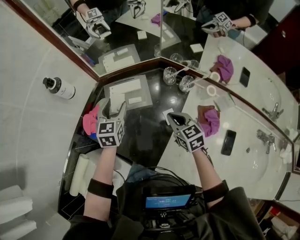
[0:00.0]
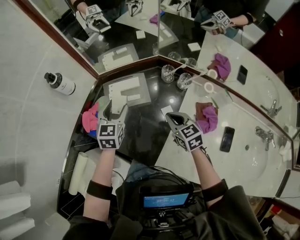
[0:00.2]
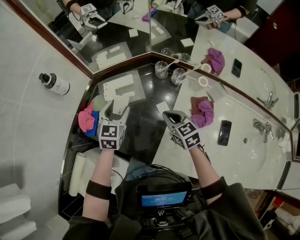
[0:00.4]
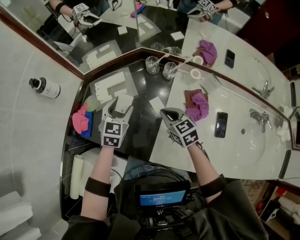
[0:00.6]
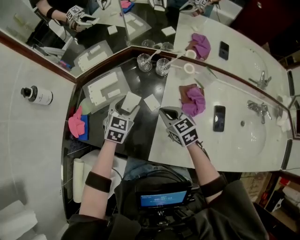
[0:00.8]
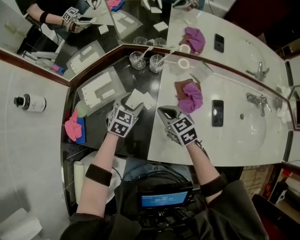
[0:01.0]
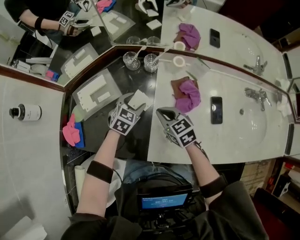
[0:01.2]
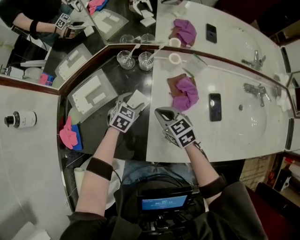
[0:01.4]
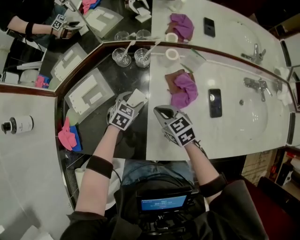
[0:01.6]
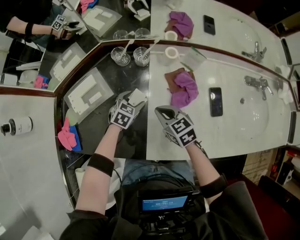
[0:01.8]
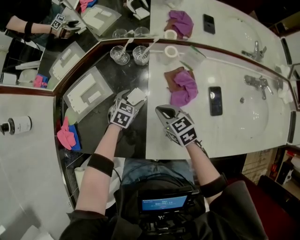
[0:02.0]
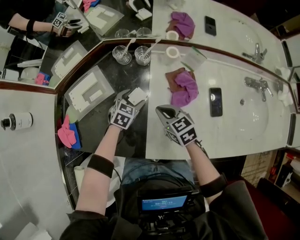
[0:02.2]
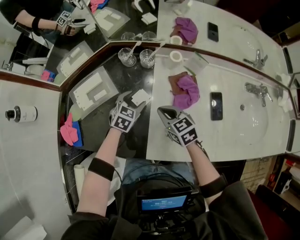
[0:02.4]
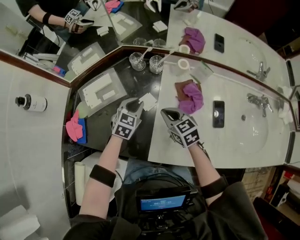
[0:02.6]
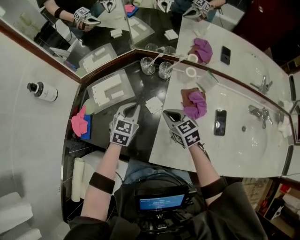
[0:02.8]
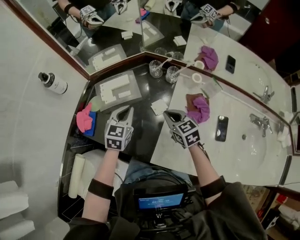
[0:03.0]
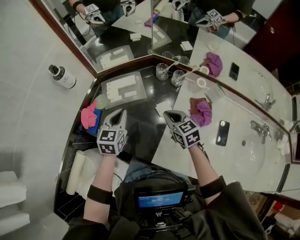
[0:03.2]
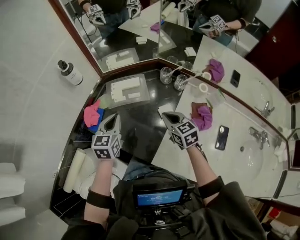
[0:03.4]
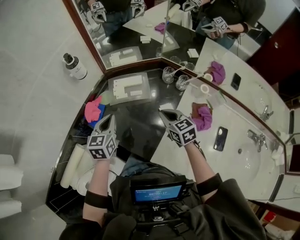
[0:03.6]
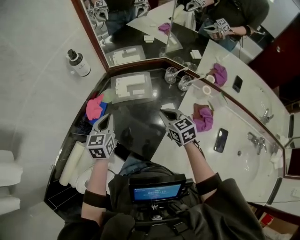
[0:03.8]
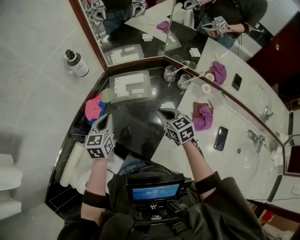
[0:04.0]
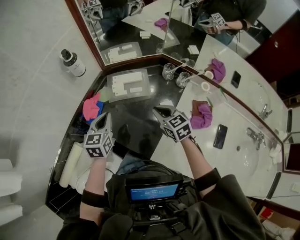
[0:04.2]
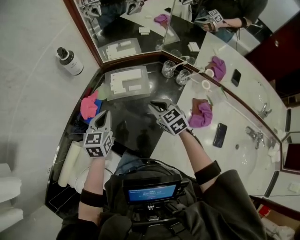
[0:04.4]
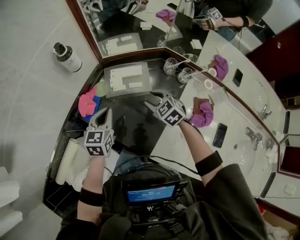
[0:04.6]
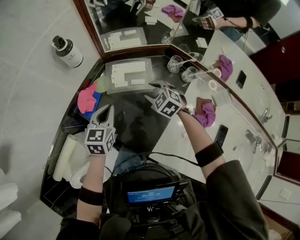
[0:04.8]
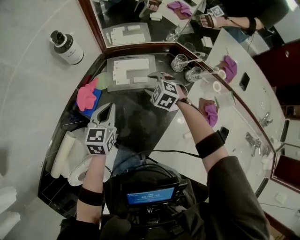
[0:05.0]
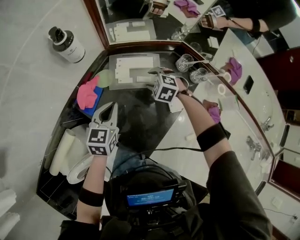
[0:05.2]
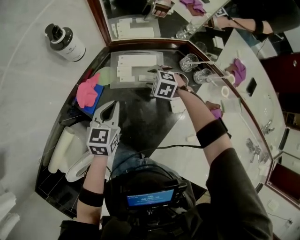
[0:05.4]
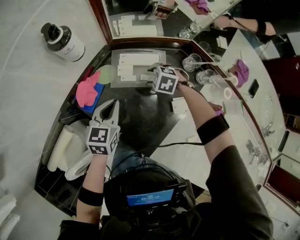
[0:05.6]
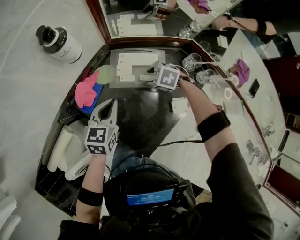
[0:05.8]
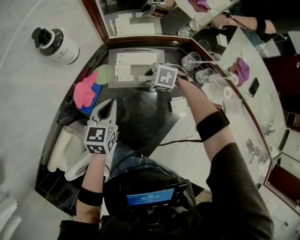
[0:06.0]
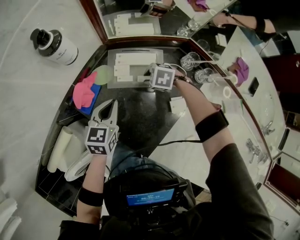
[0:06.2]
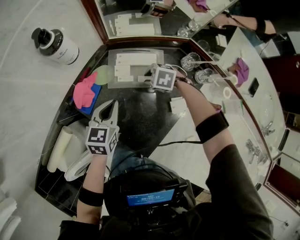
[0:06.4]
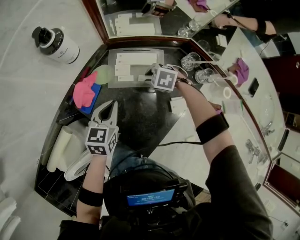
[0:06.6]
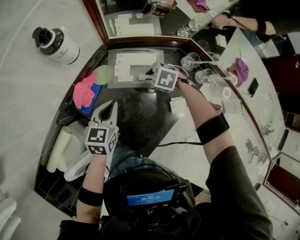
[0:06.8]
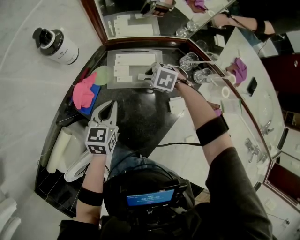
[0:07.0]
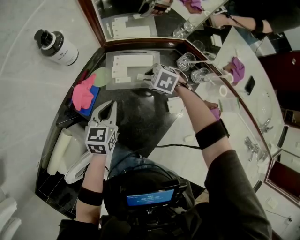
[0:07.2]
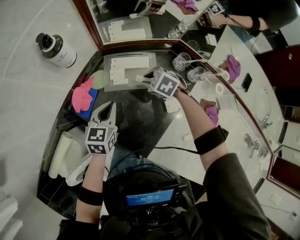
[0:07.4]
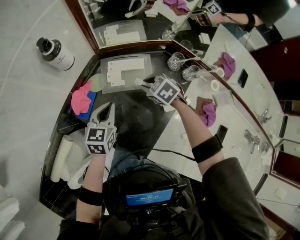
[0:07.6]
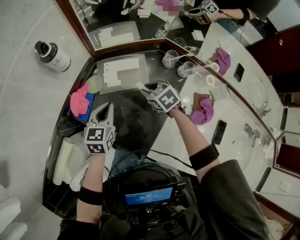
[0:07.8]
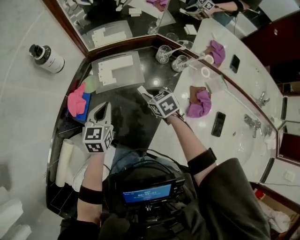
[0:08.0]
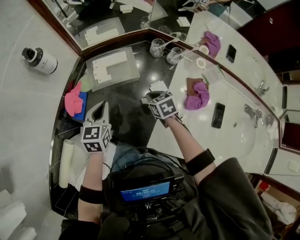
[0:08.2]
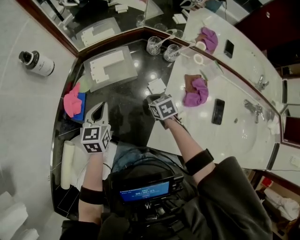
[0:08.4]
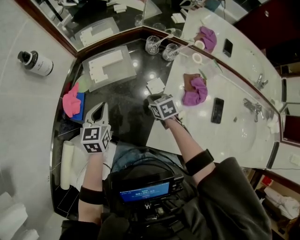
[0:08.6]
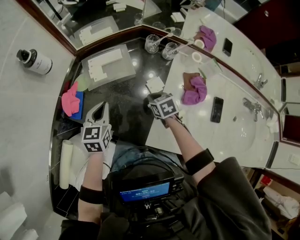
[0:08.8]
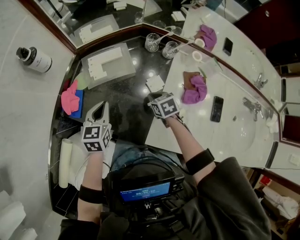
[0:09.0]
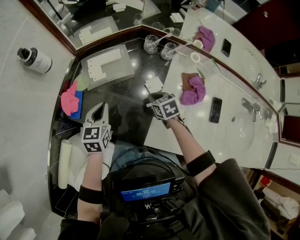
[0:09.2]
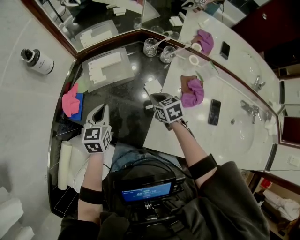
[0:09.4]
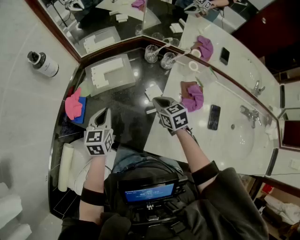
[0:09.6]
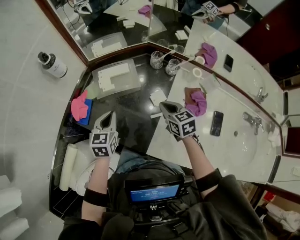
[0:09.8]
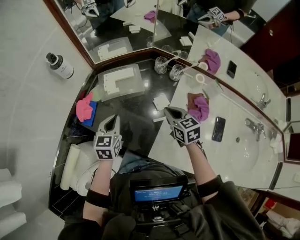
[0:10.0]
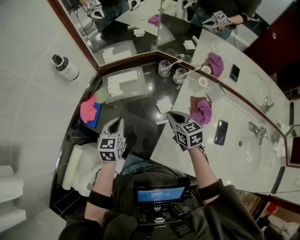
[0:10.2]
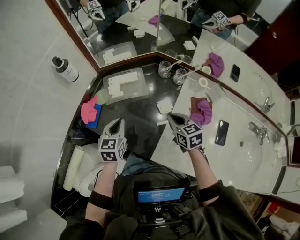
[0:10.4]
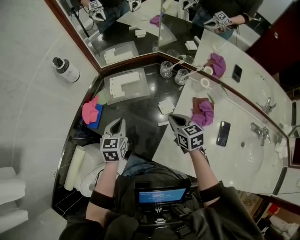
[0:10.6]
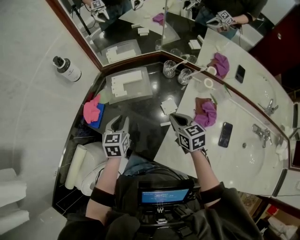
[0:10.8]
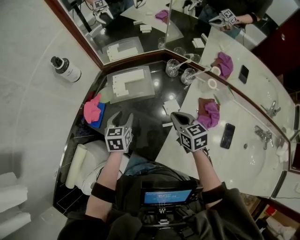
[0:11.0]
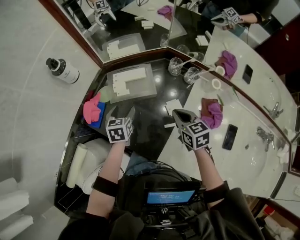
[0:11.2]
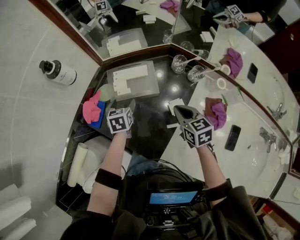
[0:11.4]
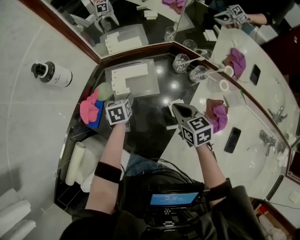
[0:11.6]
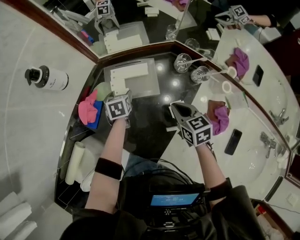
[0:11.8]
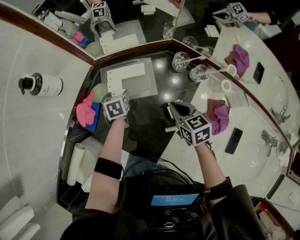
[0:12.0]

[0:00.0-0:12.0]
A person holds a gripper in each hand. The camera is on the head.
0:00.0 to 0:01.6: The left gripper ends up approximately 30 cm from where it was, and rotates roughly 60 degrees. Meanwhile the right gripper ends up approximately 10 cm from where it was.
0:01.6 to 0:03.0: The left gripper travels upward and to the left by roughly 20 cm, changes its angle by some 40 degrees, and closes its fingers. Meanwhile the right gripper travels upward by roughly 5 cm.
0:03.0 to 0:04.4: The left gripper heads to the left, covering some 15 cm, and turns by roughly 20 degrees, while the right gripper heads to the left and forward, covering about 15 cm, and rotates about 20 degrees.
0:04.4 to 0:06.0: The left gripper heads downward, covering approximately 10 cm. The right gripper shifts approximately 15 cm downward, and turns by about 60 degrees.
0:06.0 to 0:07.6: The right gripper travels upward by approximately 10 cm, and swivels approximately 30 degrees.
0:07.6 to 0:09.0: The right gripper heads backward, to the right and downward, covering about 20 cm, and rotates around the line of its fingers by approximately 40 degrees, clockwise from behind. Meanwhile the left gripper shifts roughly 5 cm backward.
0:09.0 to 0:10.4: The right gripper shifts about 15 cm upward, and rotates about 20 degrees.
0:10.4 to 0:12.0: The left gripper heads forward and downward, covering about 25 cm, swivels about 40 degrees, and opens up. The right gripper heads forward and downward, covering roughly 15 cm.

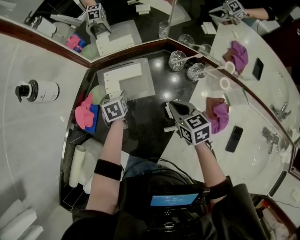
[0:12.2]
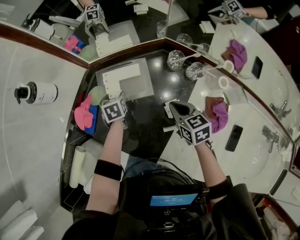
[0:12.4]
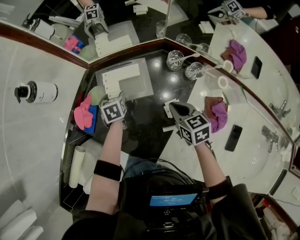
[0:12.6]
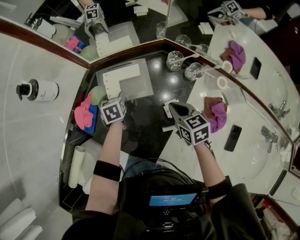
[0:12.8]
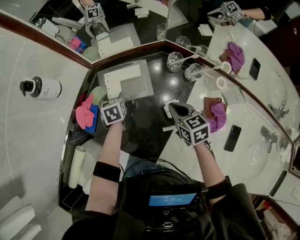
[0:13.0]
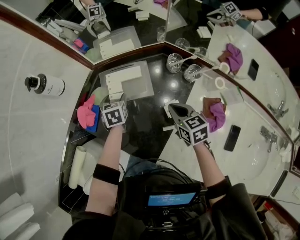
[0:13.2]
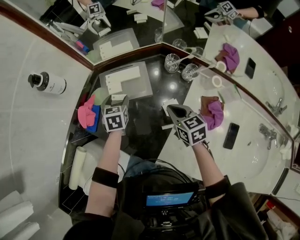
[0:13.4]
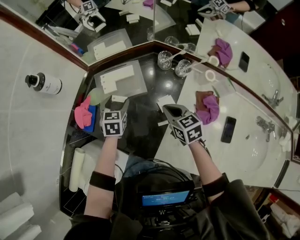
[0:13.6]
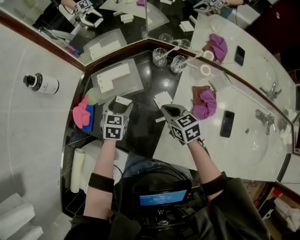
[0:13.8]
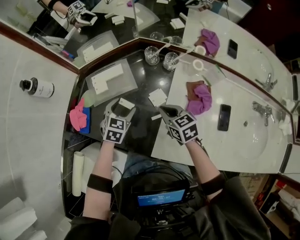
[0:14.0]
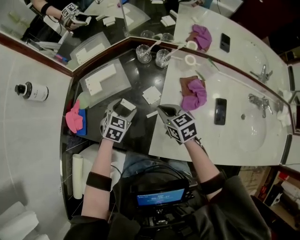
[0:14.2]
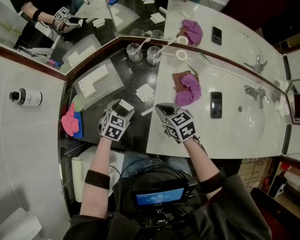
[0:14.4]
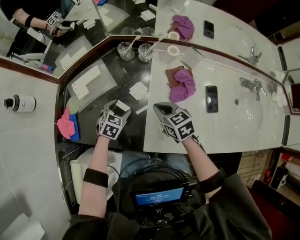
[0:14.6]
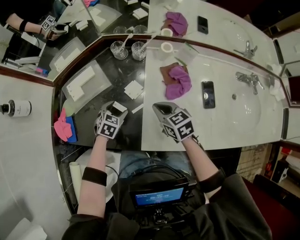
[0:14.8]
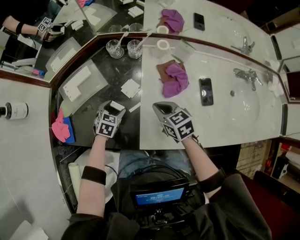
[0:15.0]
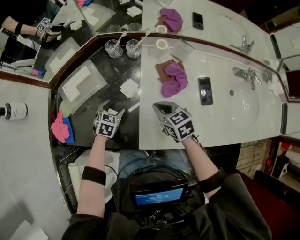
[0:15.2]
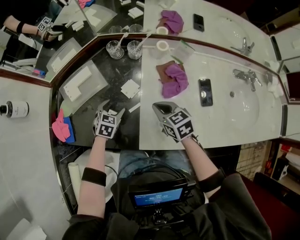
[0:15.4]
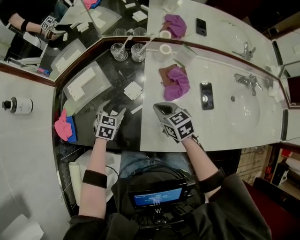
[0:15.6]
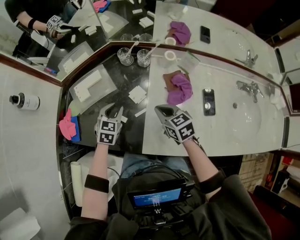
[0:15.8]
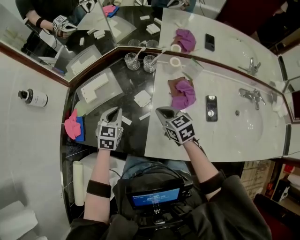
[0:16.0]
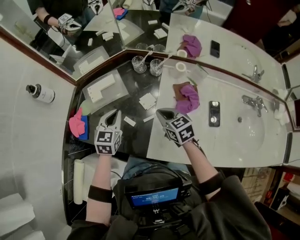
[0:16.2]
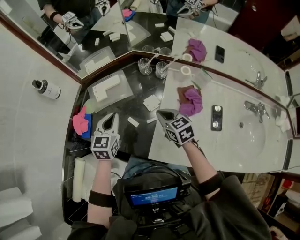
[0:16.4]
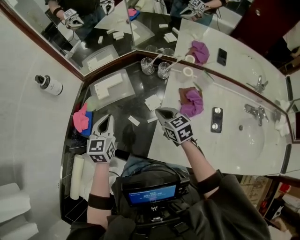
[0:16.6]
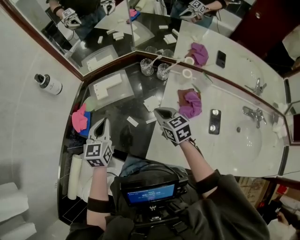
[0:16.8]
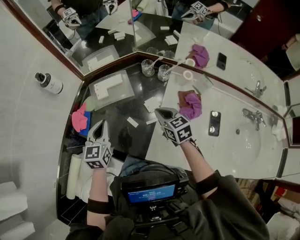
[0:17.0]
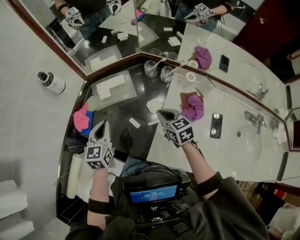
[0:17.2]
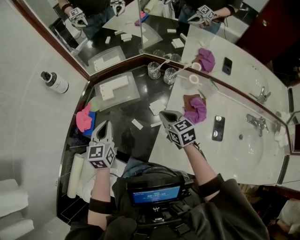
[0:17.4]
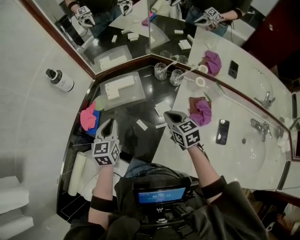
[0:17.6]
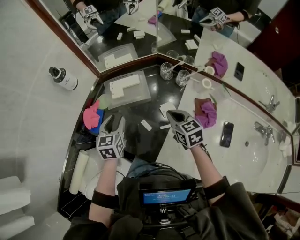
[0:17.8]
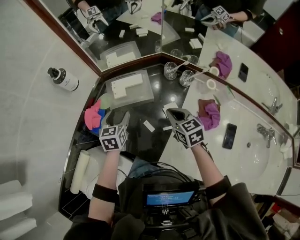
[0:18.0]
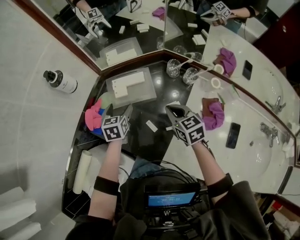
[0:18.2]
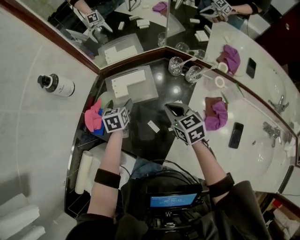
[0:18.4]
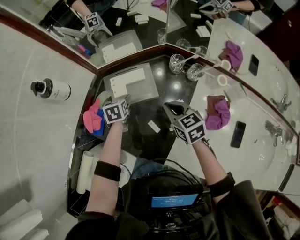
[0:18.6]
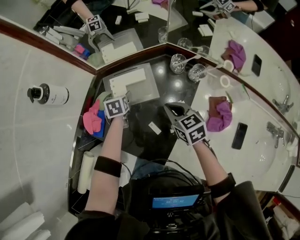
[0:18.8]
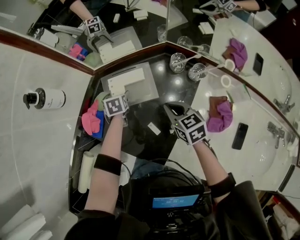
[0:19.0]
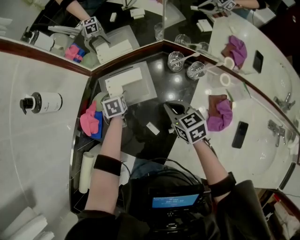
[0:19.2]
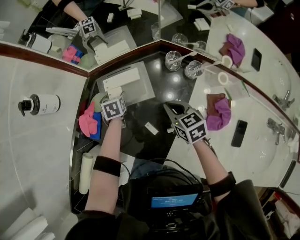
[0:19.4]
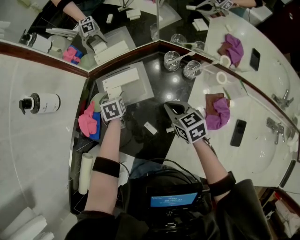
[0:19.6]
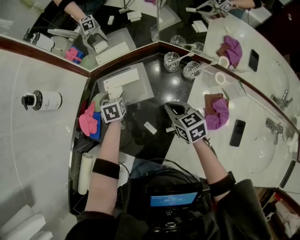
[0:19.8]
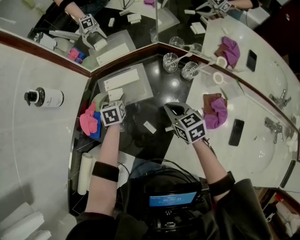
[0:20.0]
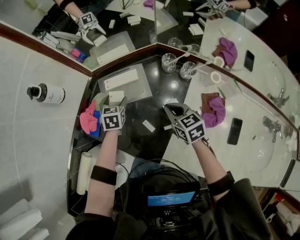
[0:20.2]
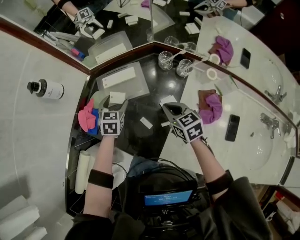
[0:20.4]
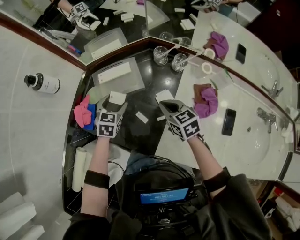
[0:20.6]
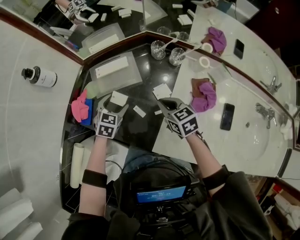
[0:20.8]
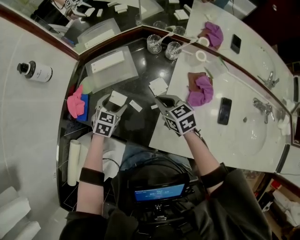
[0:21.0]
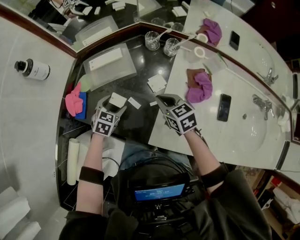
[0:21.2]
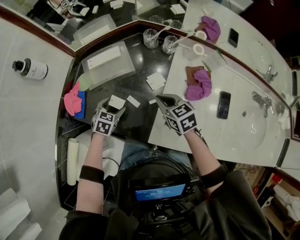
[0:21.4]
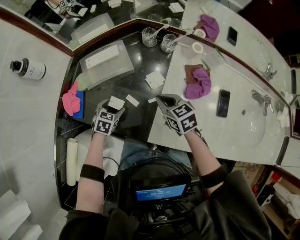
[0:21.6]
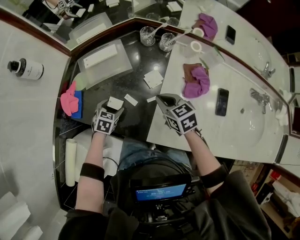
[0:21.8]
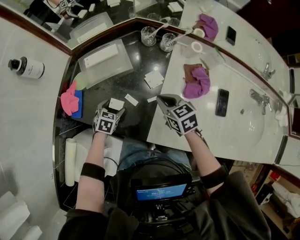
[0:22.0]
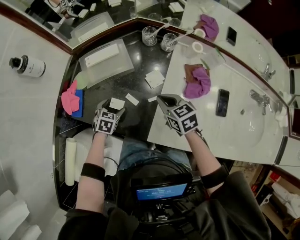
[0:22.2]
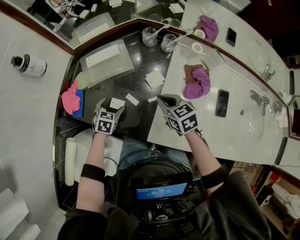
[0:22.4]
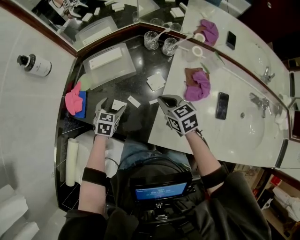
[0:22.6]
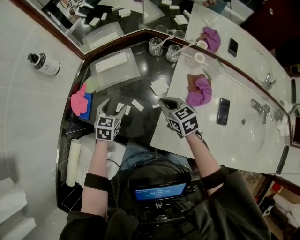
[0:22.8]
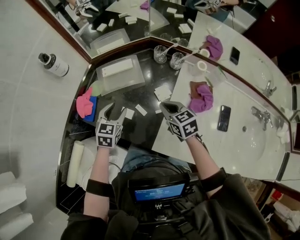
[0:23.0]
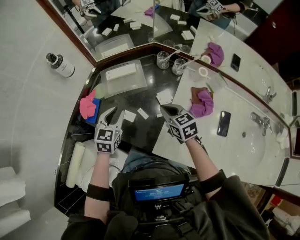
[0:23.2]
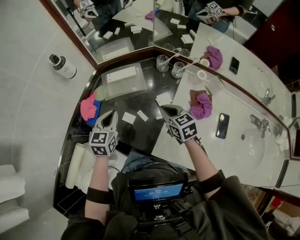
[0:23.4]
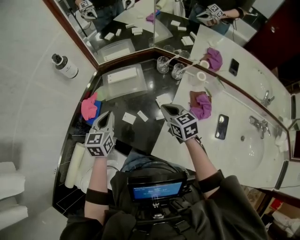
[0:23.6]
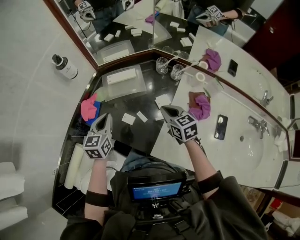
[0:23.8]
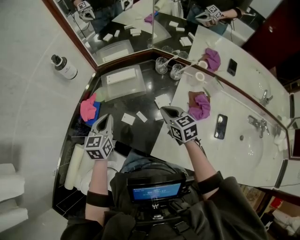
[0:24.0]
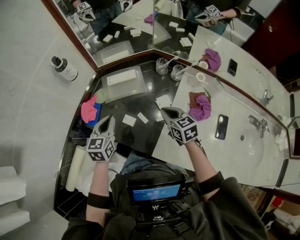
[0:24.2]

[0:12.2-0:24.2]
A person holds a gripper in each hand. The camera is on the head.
0:12.2 to 0:13.8: The right gripper is displaced backward by about 10 cm, while the left gripper travels backward, upward and to the right by some 15 cm, and turns by approximately 40 degrees.
0:13.8 to 0:15.2: The right gripper goes some 15 cm to the right and backward; the left gripper travels to the right, downward and backward by roughly 15 cm, and rotates roughly 30 degrees.
0:15.2 to 0:16.6: The left gripper shifts roughly 25 cm upward and to the left, rotates some 40 degrees, and closes its fingers. The right gripper goes roughly 10 cm to the left and upward.
0:16.6 to 0:18.2: The right gripper is displaced forward by approximately 10 cm. Meanwhile the left gripper shifts some 15 cm forward and downward, rotates approximately 20 degrees, and opens its fingers.
0:18.2 to 0:19.8: The right gripper shifts about 5 cm downward; the left gripper moves downward and forward, roughly 10 cm.
0:19.8 to 0:21.2: The right gripper travels backward by approximately 10 cm. Meanwhile the left gripper is displaced backward by approximately 20 cm, and swivels some 40 degrees.
0:22.6 to 0:24.2: The left gripper shifts some 20 cm upward, turns by some 30 degrees, and closes its fingers, while the right gripper is displaced upward by about 5 cm.
